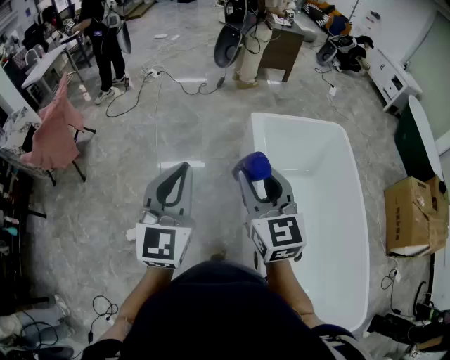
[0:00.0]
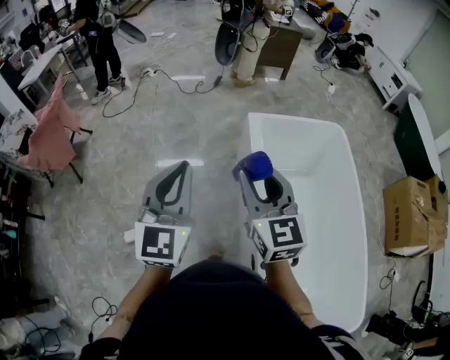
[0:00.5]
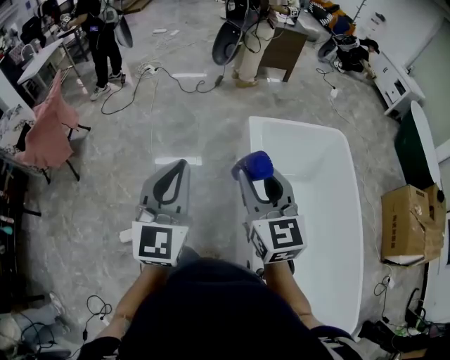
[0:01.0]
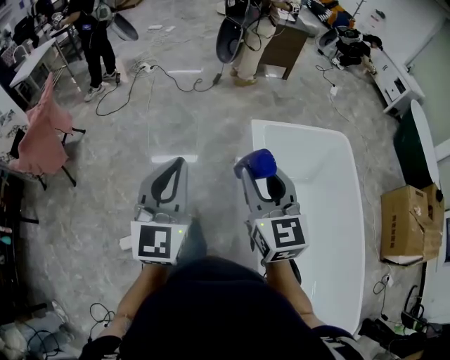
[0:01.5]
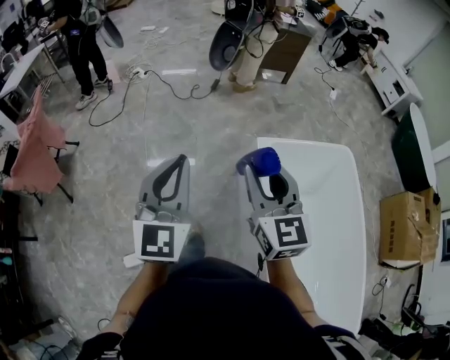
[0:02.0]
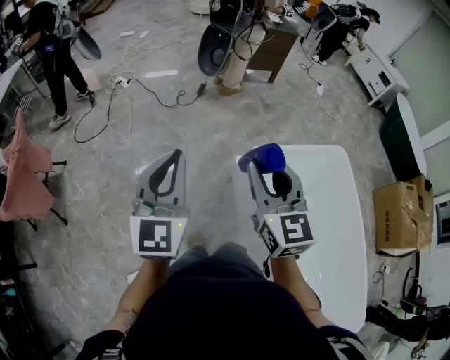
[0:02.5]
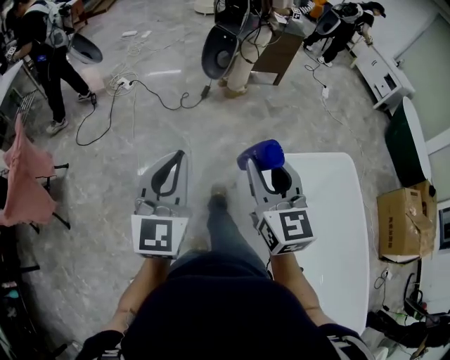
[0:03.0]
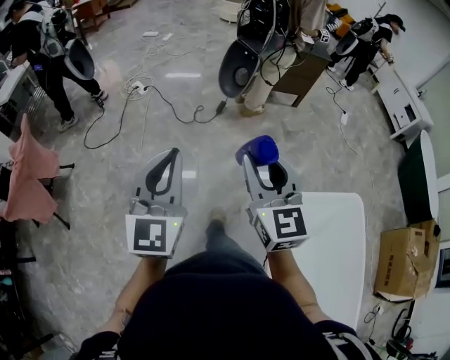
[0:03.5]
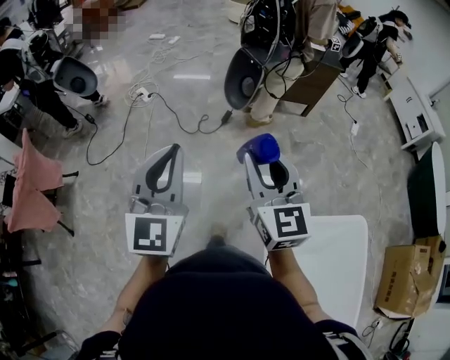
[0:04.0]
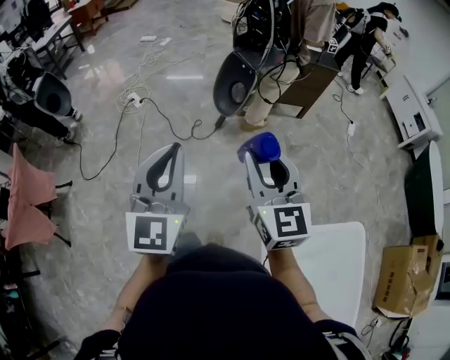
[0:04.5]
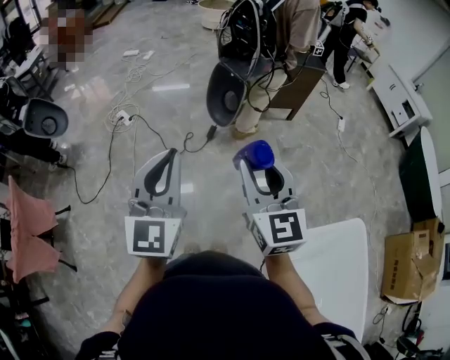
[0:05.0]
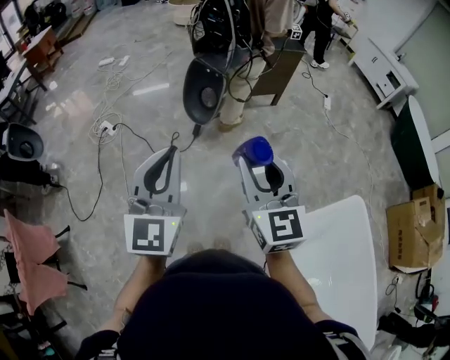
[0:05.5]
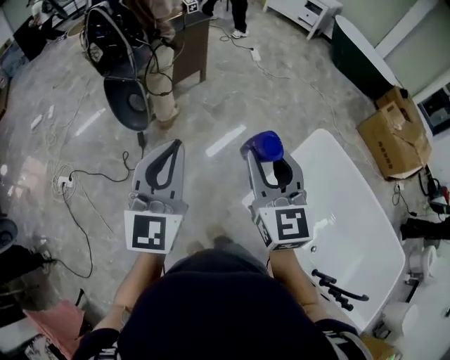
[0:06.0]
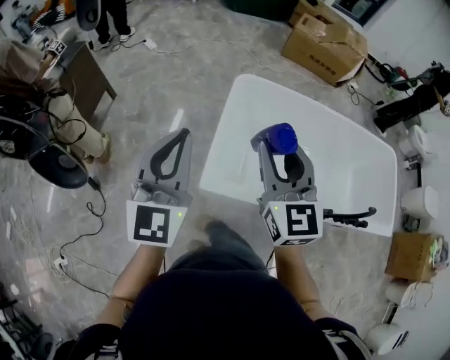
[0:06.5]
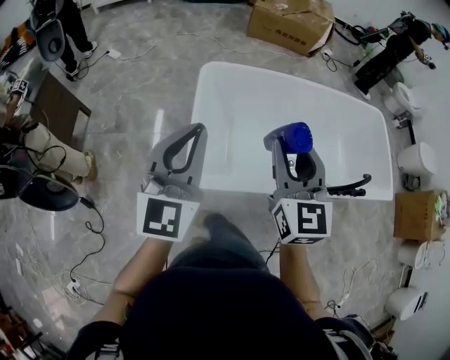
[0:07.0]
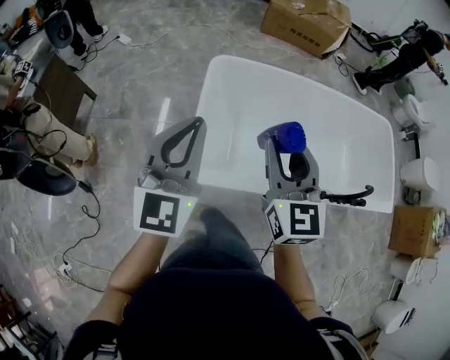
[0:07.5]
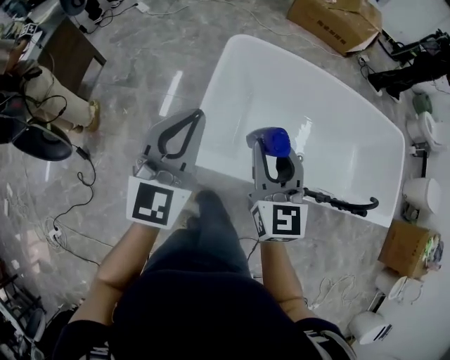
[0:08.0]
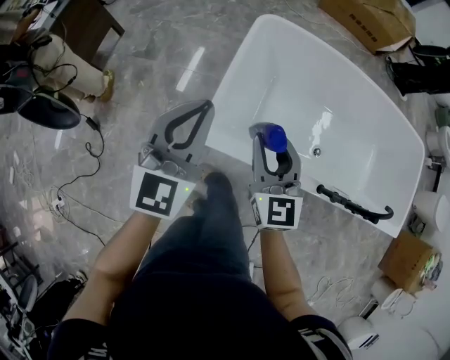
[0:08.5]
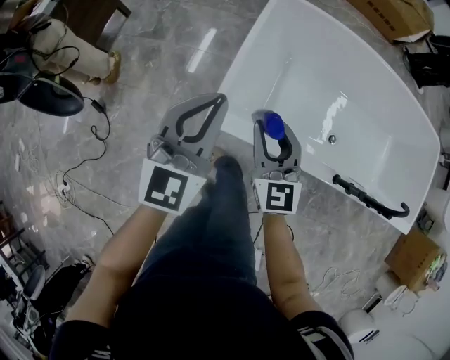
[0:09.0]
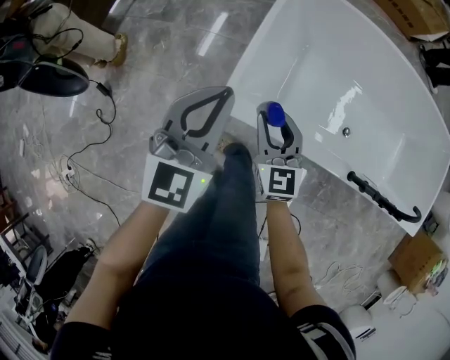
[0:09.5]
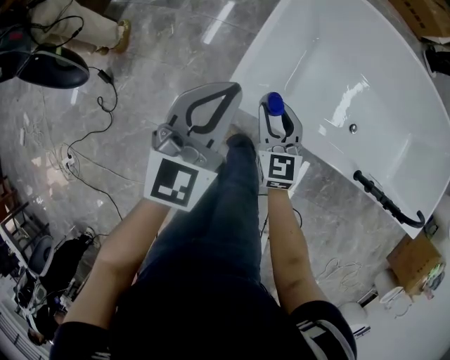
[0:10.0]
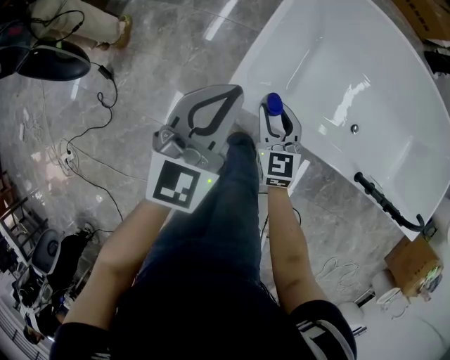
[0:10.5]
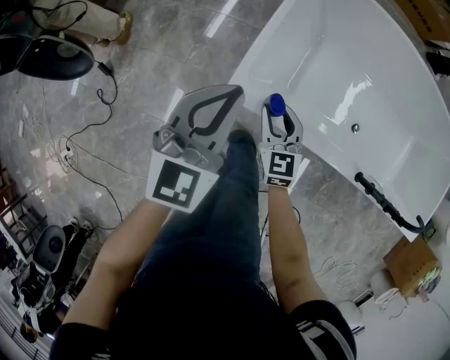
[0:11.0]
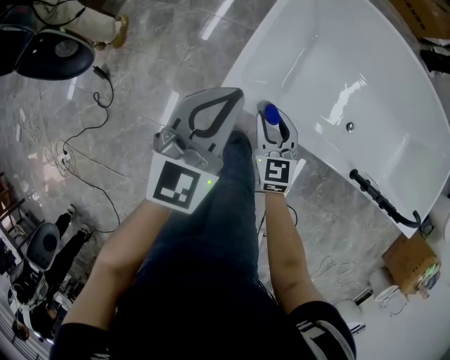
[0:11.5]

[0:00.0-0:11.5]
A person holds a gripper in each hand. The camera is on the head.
0:00.0 to 0:02.0: Both grippers travel together forward, about 25 cm.
0:02.0 to 0:04.0: Both grippers are carried forward, approximately 40 cm.
0:04.0 to 0:06.0: The right gripper ends up approximately 15 cm from where it was, and turns by roughly 50 degrees. The left gripper moves some 25 cm, and changes its angle by approximately 50 degrees.
0:06.0 to 0:07.5: The left gripper shifts by roughly 35 cm, and swivels roughly 50 degrees. Meanwhile the right gripper changes place by roughly 35 cm, and changes its angle by about 50 degrees.
0:07.5 to 0:09.5: The left gripper shifts some 20 cm downward. Meanwhile the right gripper moves downward, approximately 30 cm, and swivels roughly 20 degrees.
0:09.5 to 0:11.5: The right gripper heads downward, covering approximately 10 cm.

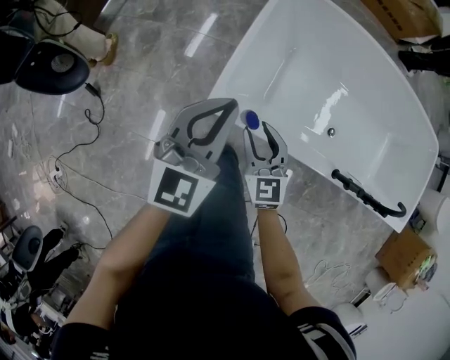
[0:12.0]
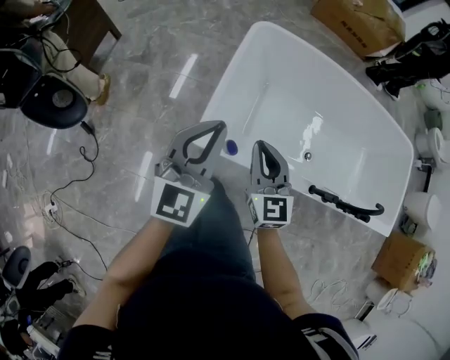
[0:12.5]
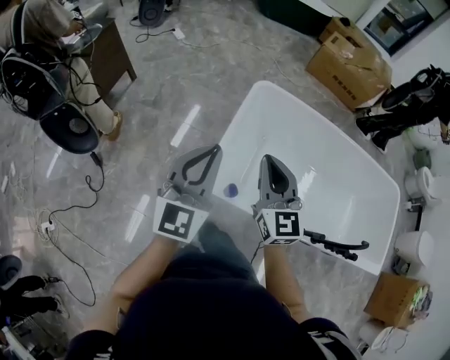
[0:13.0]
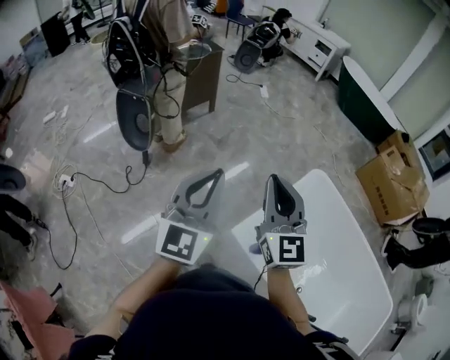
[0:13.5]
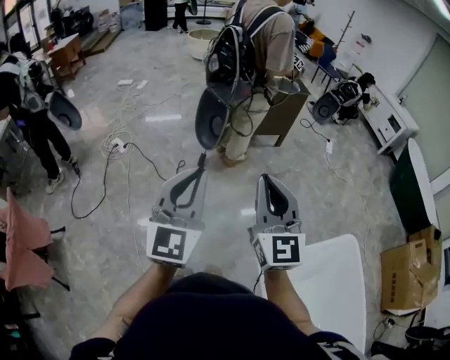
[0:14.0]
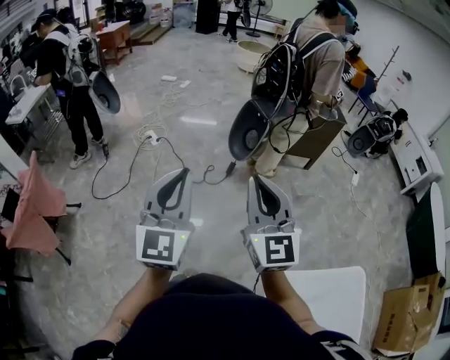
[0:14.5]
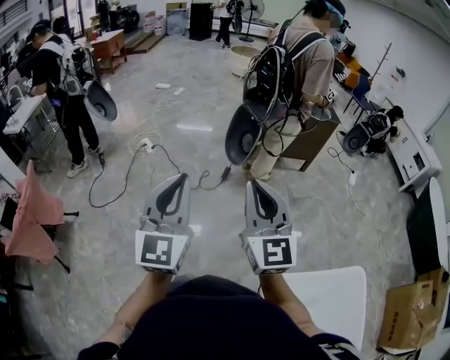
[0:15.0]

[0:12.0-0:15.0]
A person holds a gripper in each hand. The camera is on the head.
0:12.0 to 0:13.5: The right gripper travels upward by some 40 cm, changes its angle by some 40 degrees, and closes its fingers. The left gripper shifts roughly 25 cm upward, and rotates approximately 40 degrees.
0:13.5 to 0:15.0: The right gripper shifts by approximately 30 cm, and changes its angle by approximately 40 degrees; the left gripper ends up roughly 30 cm from where it was, and changes its angle by about 50 degrees.

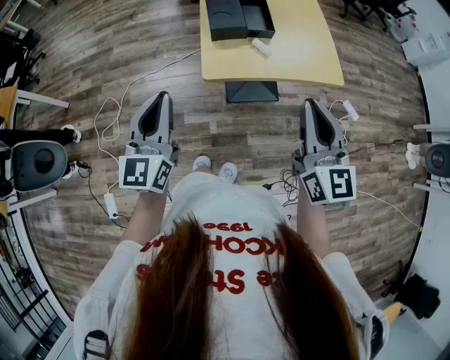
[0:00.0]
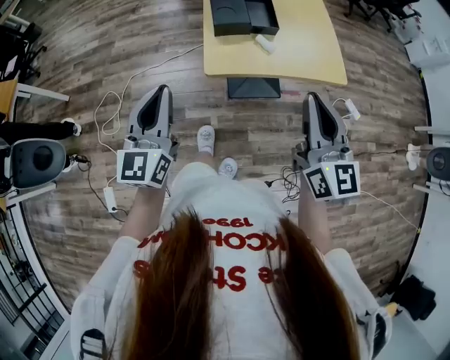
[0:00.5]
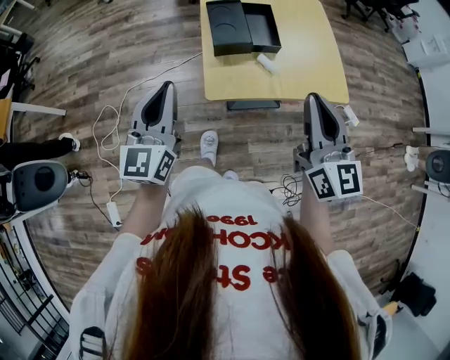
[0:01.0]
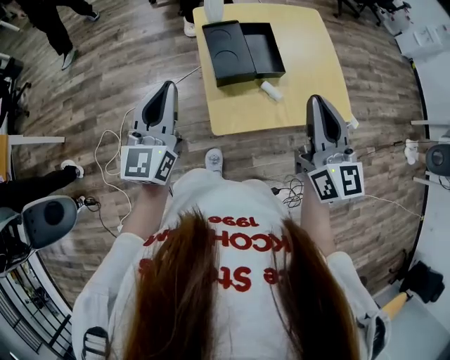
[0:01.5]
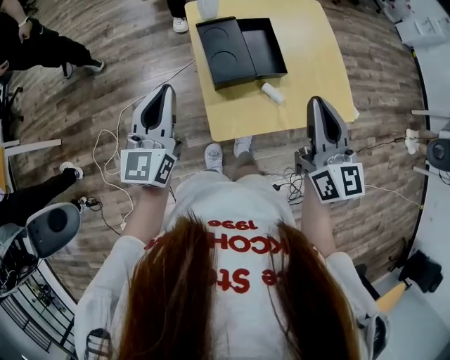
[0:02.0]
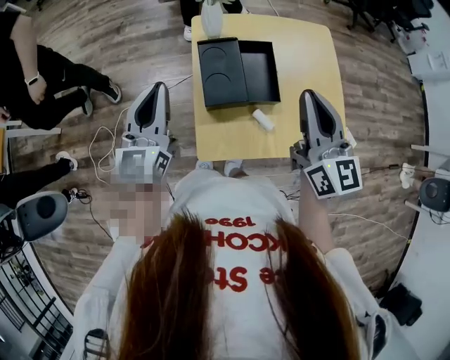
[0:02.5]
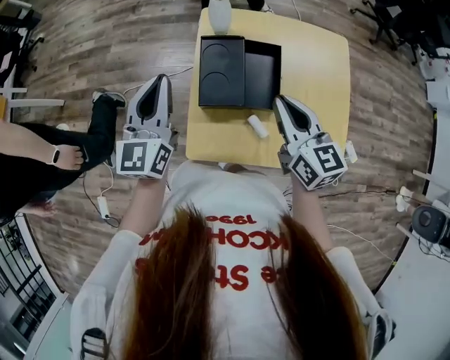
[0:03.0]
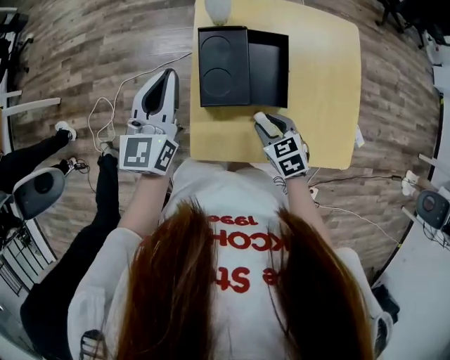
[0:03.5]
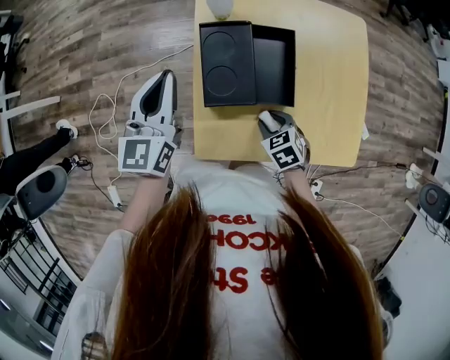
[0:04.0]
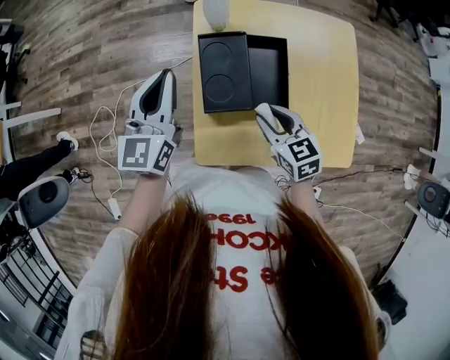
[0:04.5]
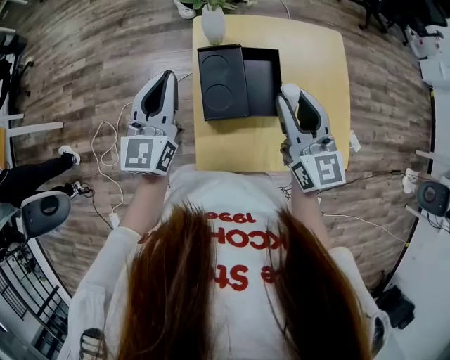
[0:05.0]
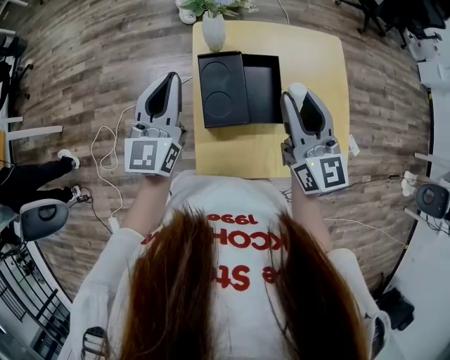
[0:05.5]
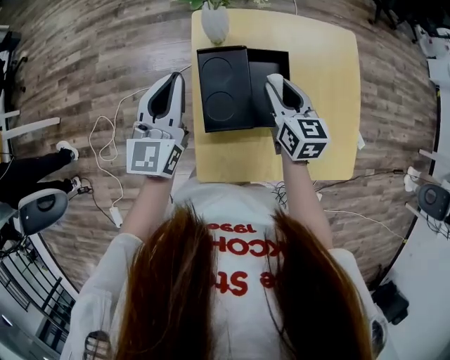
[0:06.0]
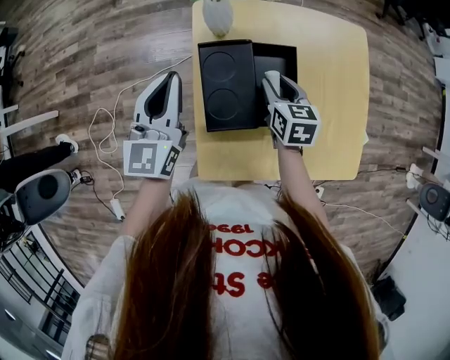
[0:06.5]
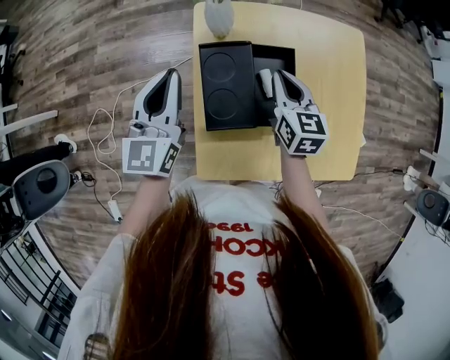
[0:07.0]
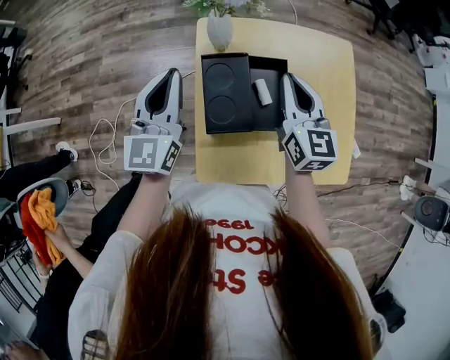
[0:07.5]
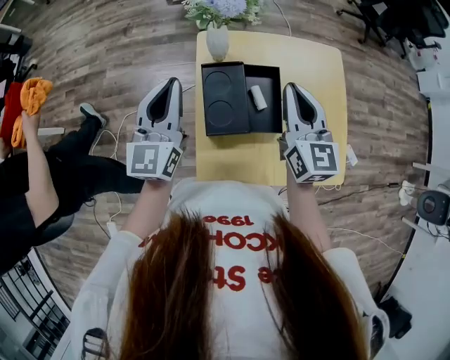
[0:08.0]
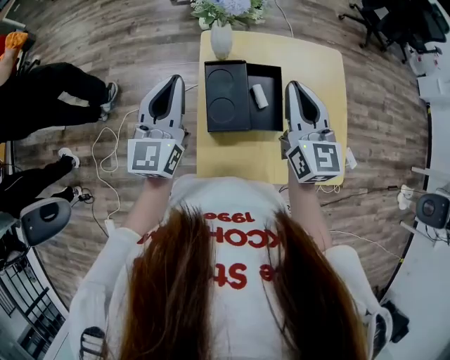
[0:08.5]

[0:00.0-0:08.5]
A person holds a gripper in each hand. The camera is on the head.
0:00.0 to 0:02.0: Both grippers move forward, some 25 cm.
0:02.0 to 0:04.0: The left gripper ends up roughly 10 cm from where it was. The right gripper moves downward, approximately 30 cm, angles its fingers downward, by roughly 60 degrees, and opens.
0:04.0 to 0:06.5: The right gripper travels forward by roughly 15 cm, travels upward and back again, roughly 30 cm each way, and rotates roughly 40 degrees.
0:06.5 to 0:08.5: The left gripper goes some 10 cm upward. Meanwhile the right gripper is displaced upward by approximately 25 cm, points its fingers roughly 40 degrees further upward, and closes up.

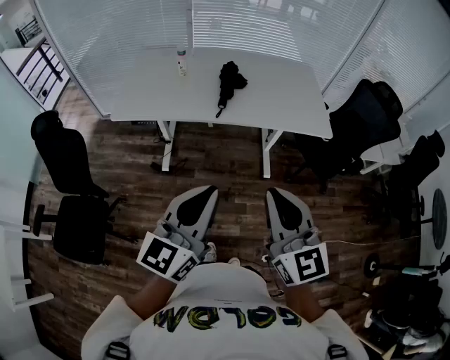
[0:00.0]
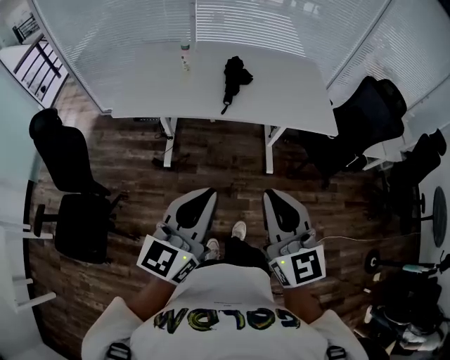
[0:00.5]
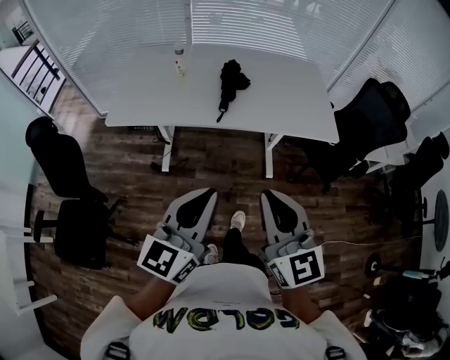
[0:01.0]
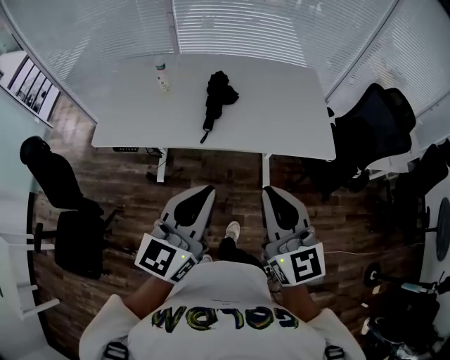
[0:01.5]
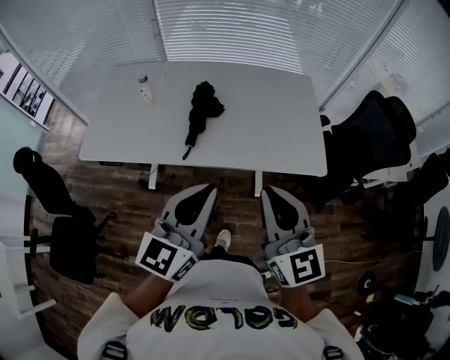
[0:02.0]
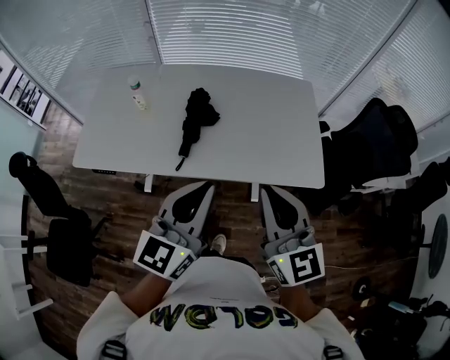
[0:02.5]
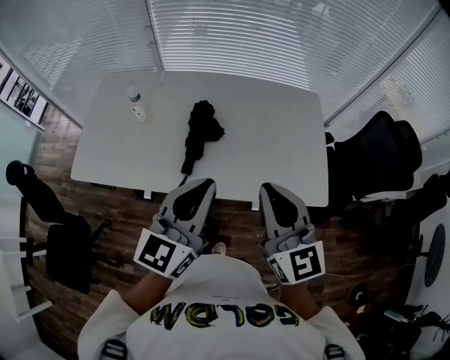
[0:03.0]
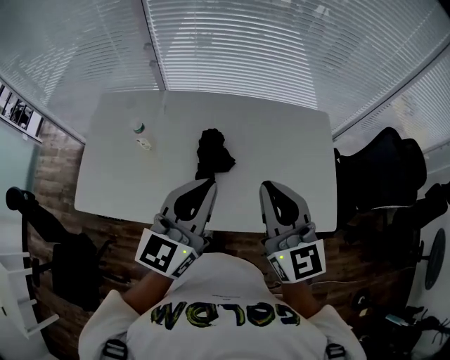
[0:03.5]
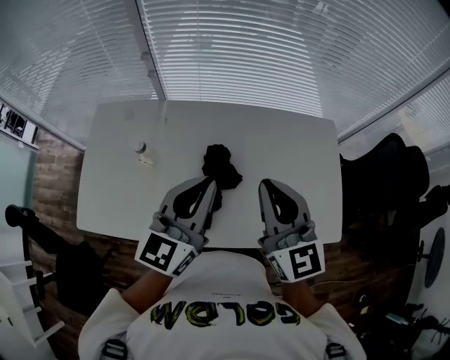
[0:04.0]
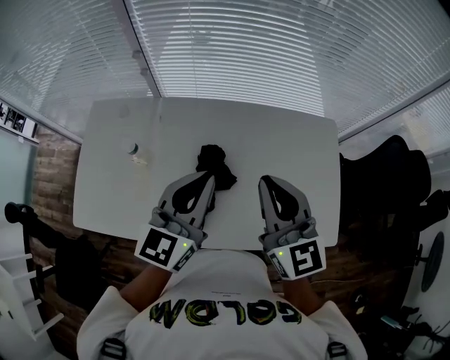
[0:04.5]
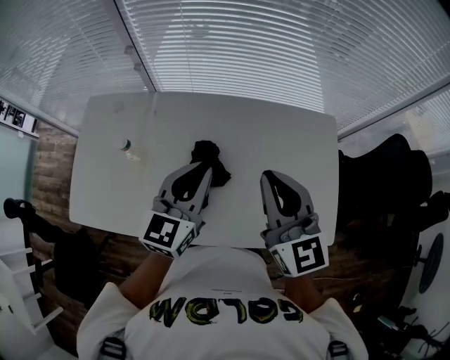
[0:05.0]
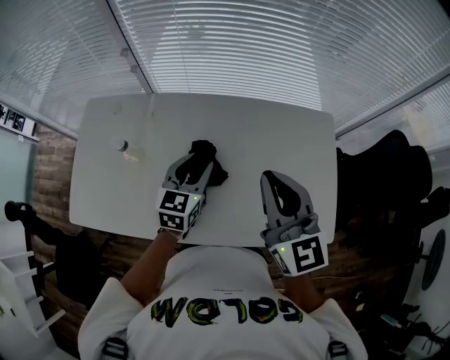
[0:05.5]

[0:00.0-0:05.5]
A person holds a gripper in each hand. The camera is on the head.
0:00.0 to 0:02.0: The grippers both shift forward and to the right by about 30 cm.
0:02.0 to 0:03.5: Both grippers move forward, roughly 25 cm.
0:03.5 to 0:05.5: The right gripper travels forward by approximately 10 cm; the left gripper moves forward and downward, some 25 cm, changes its angle by roughly 30 degrees, and opens up.
